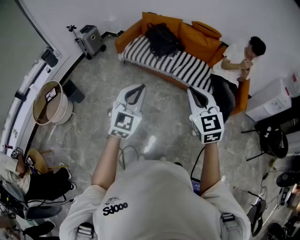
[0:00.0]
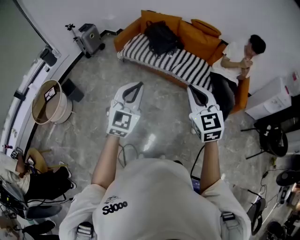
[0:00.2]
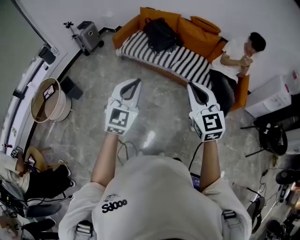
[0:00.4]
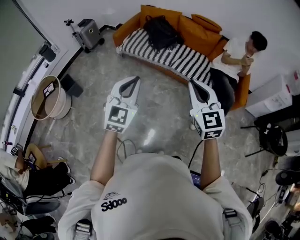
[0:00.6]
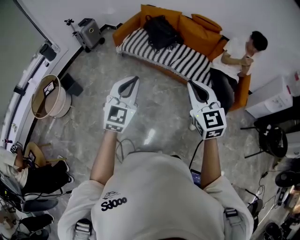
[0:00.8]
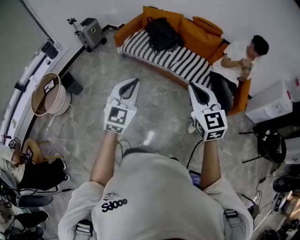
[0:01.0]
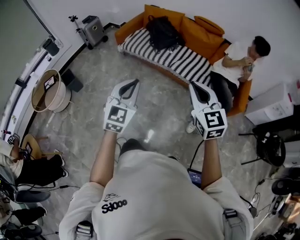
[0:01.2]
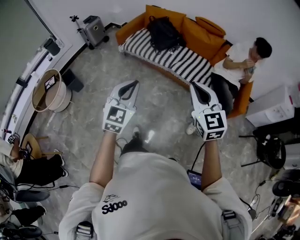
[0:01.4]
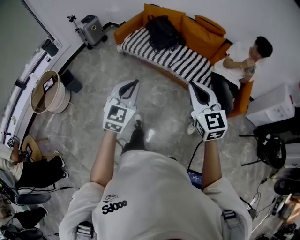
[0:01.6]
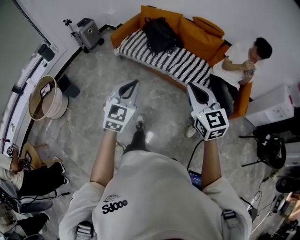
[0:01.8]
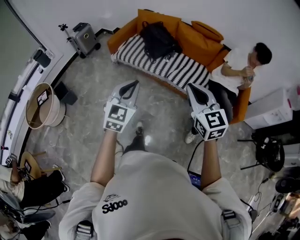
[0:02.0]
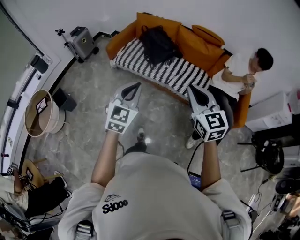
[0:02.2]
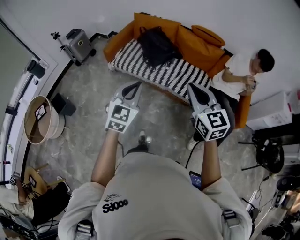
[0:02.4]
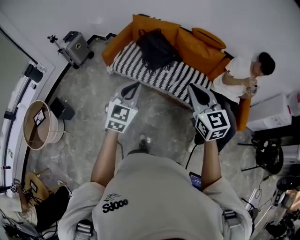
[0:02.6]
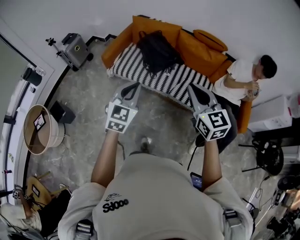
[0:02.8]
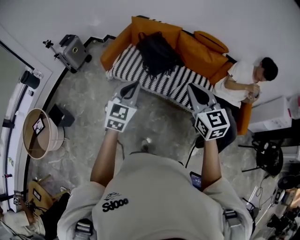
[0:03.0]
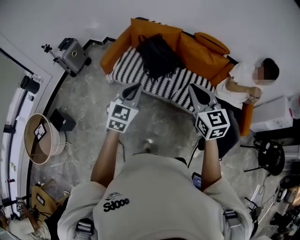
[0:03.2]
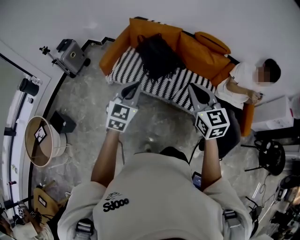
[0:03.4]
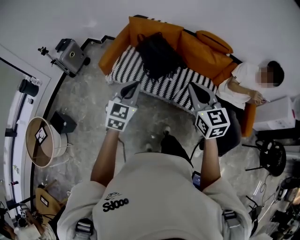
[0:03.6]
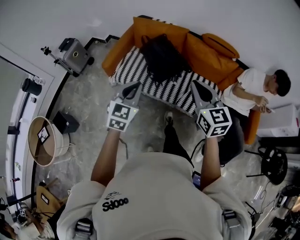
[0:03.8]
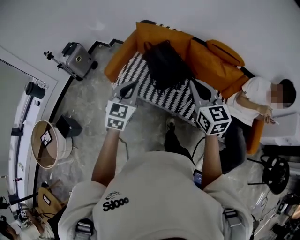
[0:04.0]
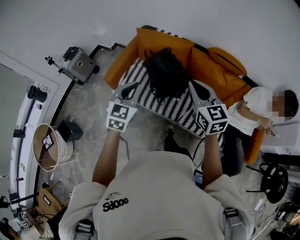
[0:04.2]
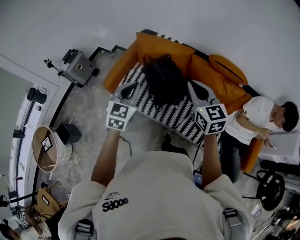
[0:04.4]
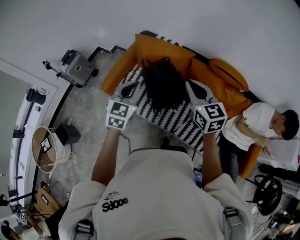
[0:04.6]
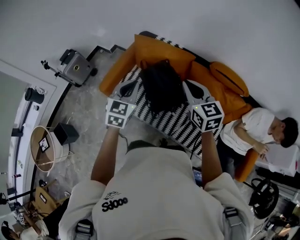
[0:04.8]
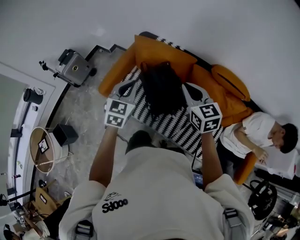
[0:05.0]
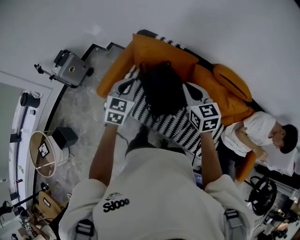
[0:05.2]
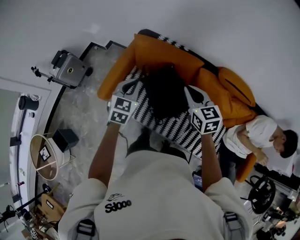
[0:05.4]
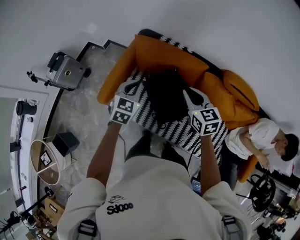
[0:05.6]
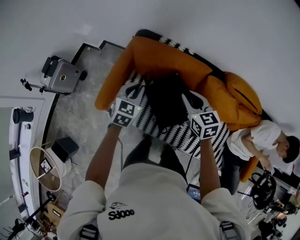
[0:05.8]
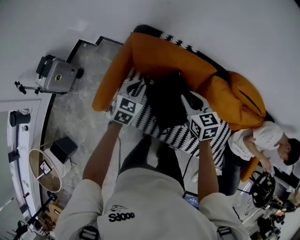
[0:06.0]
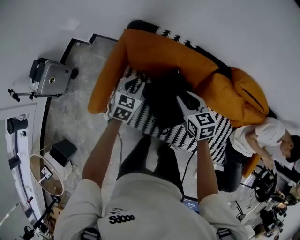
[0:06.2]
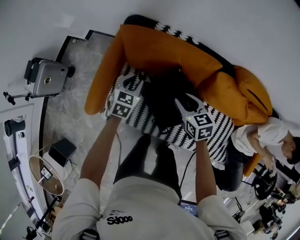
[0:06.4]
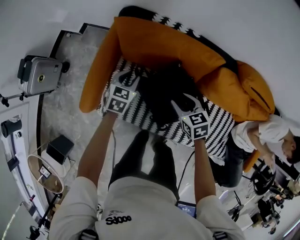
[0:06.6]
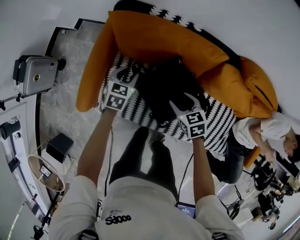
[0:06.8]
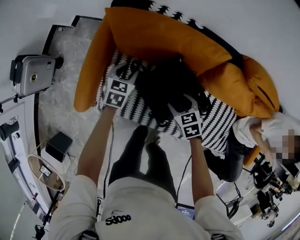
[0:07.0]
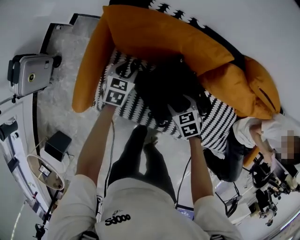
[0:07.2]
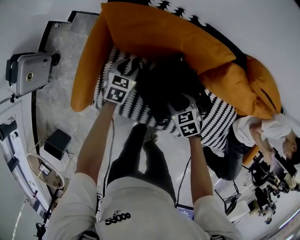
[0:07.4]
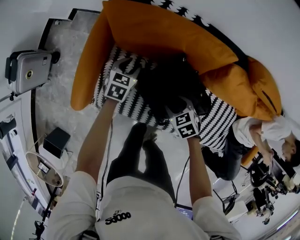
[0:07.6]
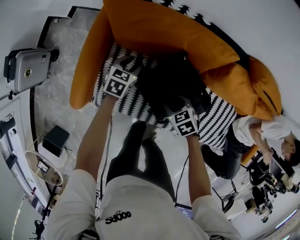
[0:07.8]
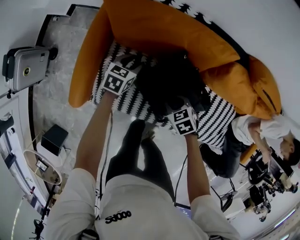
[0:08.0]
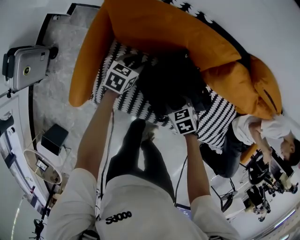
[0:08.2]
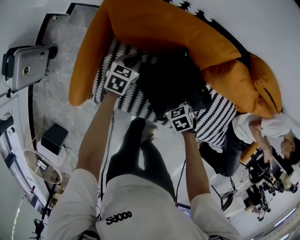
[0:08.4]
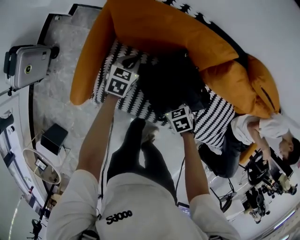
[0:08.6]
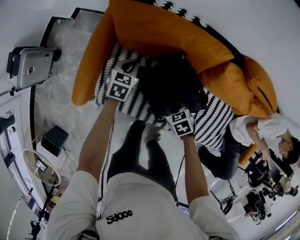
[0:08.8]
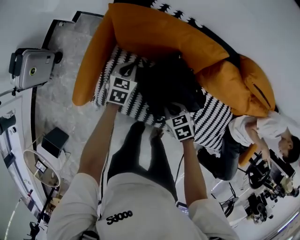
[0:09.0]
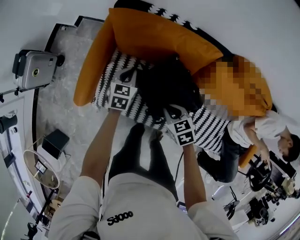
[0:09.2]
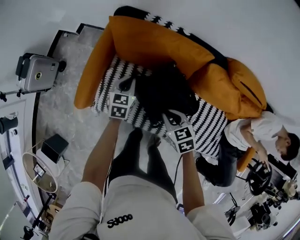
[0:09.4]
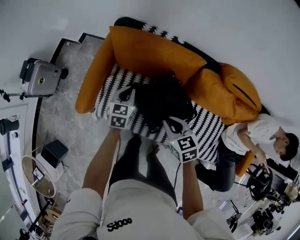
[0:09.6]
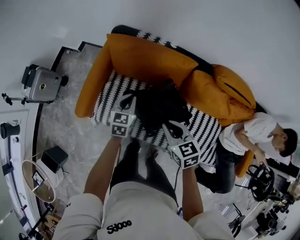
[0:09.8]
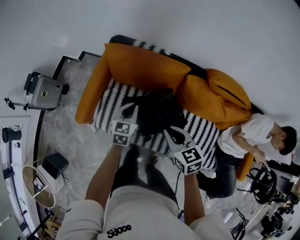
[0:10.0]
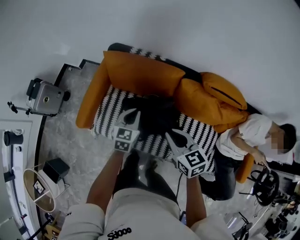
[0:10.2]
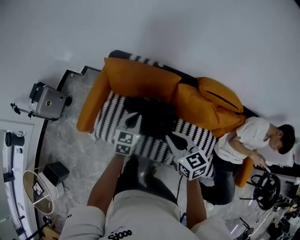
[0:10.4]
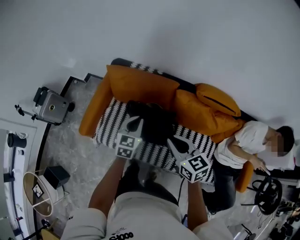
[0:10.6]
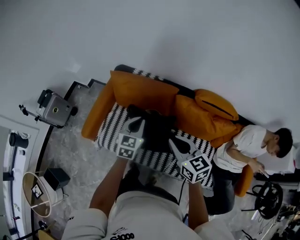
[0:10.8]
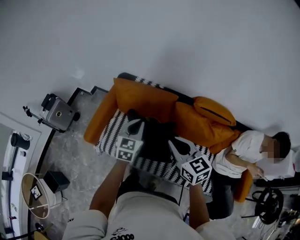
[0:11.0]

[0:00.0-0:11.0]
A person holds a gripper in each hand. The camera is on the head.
0:00.0 to 0:01.6: The right gripper travels to the right and forward by about 10 cm. The left gripper is displaced to the right by some 5 cm.
0:01.6 to 0:03.2: The pair of grippers is taken forward, about 40 cm.
0:03.2 to 0:04.8: Both grippers are carried forward, roughly 40 cm.
0:04.8 to 0:06.2: The left gripper shifts approximately 40 cm forward and downward, swivels some 20 degrees, and opens. The right gripper heads downward and forward, covering roughly 35 cm, rotates about 20 degrees, and opens up.
0:06.2 to 0:07.8: Both grippers travel together downward, about 25 cm. The right gripper turns by roughly 30 degrees.
0:07.8 to 0:09.4: The right gripper goes about 15 cm upward, and closes. The left gripper moves upward and backward, approximately 15 cm, and closes up.
0:09.4 to 0:11.0: The right gripper heads upward, covering roughly 30 cm, and angles its fingers upward, by about 30 degrees; the left gripper moves upward, backward and to the right, about 35 cm, and rotates about 20 degrees.

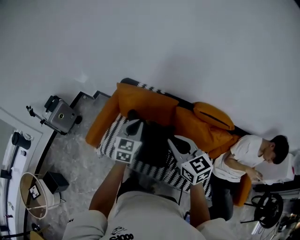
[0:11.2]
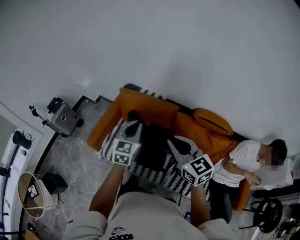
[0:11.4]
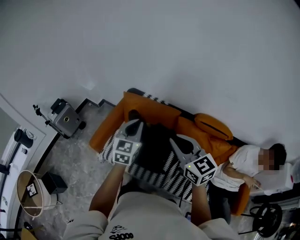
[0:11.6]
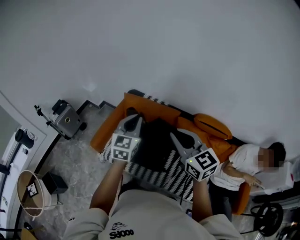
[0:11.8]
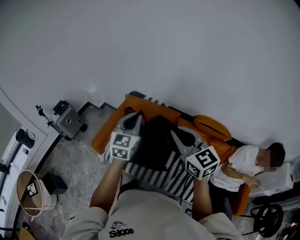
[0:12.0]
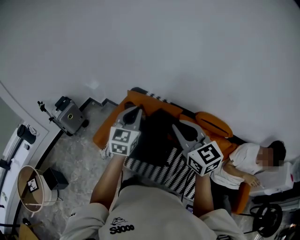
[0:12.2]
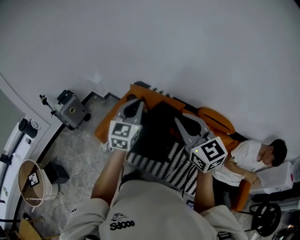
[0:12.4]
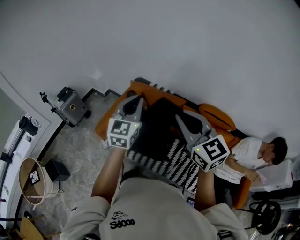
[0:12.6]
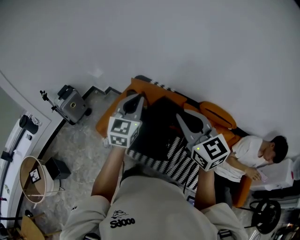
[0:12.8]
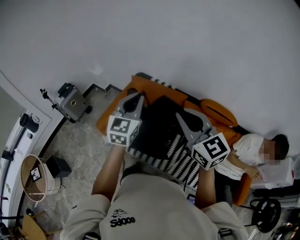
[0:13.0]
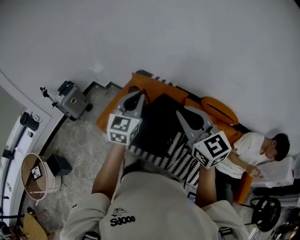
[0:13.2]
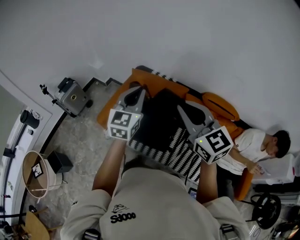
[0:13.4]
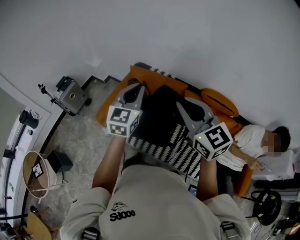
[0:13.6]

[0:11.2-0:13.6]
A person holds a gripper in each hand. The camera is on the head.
0:11.2 to 0:12.4: The grippers both shift upward by roughly 15 cm.
0:12.4 to 0:13.6: There are only small adjustments of the grippers.

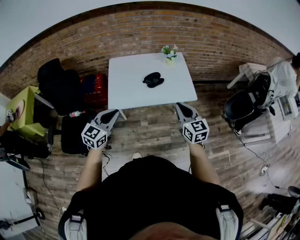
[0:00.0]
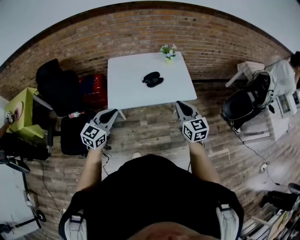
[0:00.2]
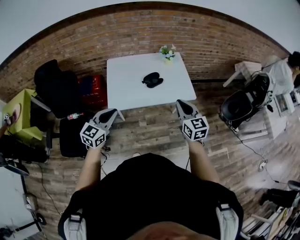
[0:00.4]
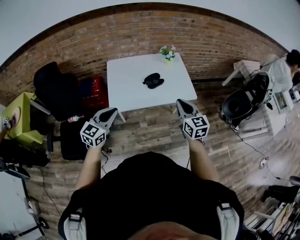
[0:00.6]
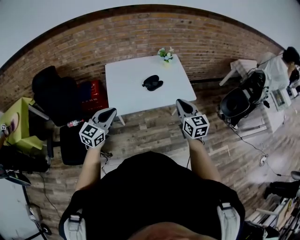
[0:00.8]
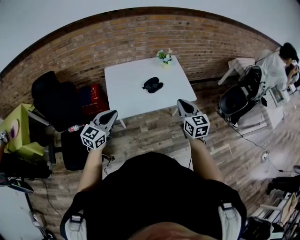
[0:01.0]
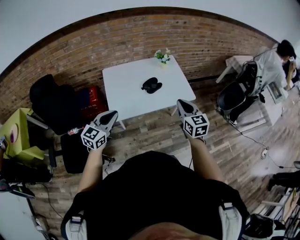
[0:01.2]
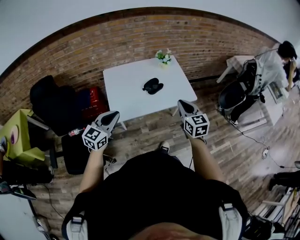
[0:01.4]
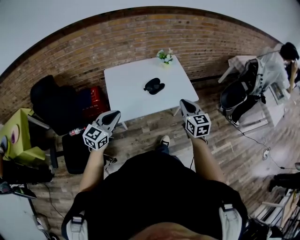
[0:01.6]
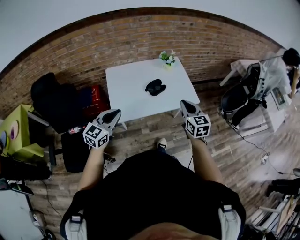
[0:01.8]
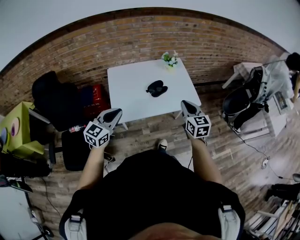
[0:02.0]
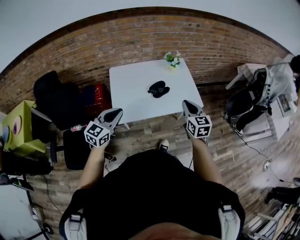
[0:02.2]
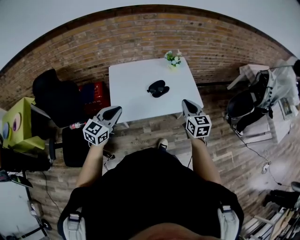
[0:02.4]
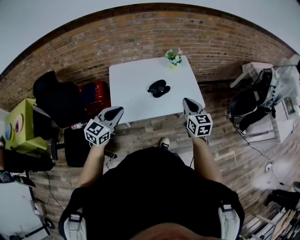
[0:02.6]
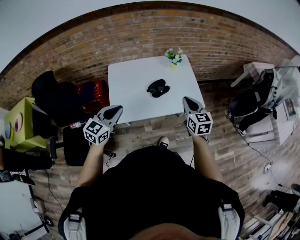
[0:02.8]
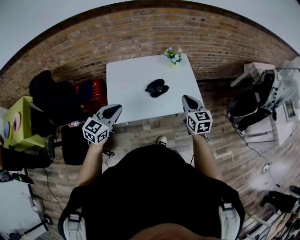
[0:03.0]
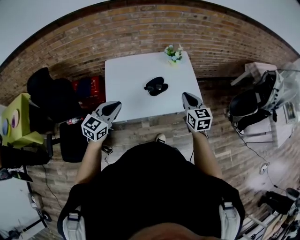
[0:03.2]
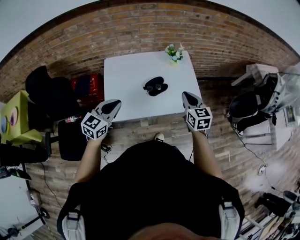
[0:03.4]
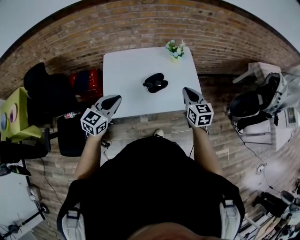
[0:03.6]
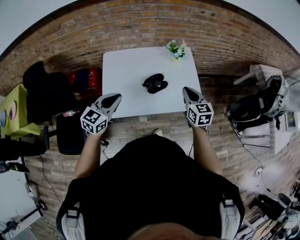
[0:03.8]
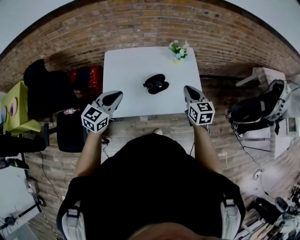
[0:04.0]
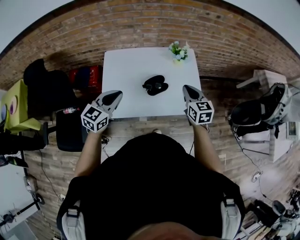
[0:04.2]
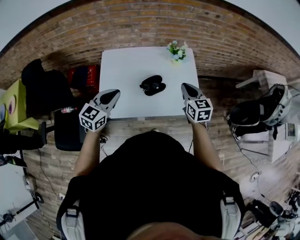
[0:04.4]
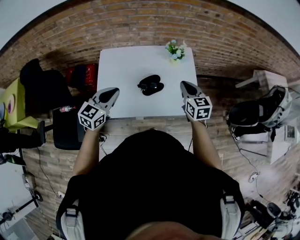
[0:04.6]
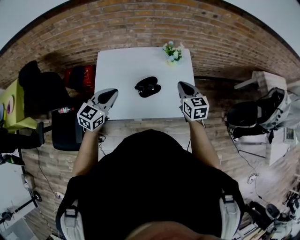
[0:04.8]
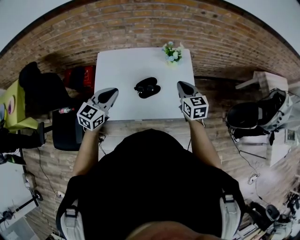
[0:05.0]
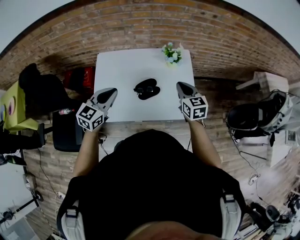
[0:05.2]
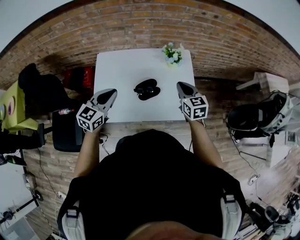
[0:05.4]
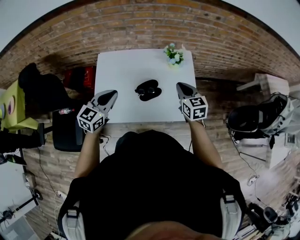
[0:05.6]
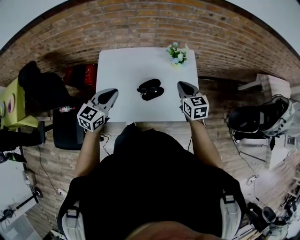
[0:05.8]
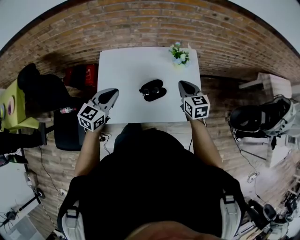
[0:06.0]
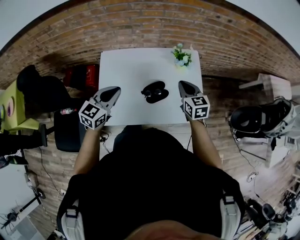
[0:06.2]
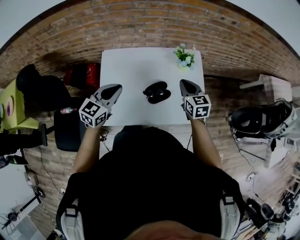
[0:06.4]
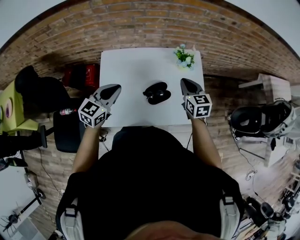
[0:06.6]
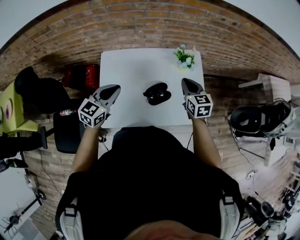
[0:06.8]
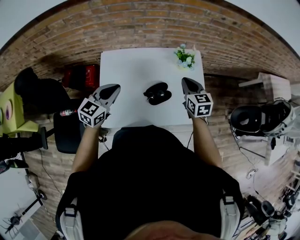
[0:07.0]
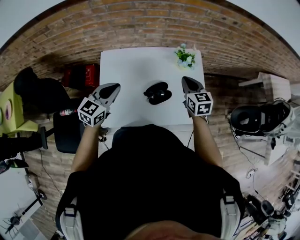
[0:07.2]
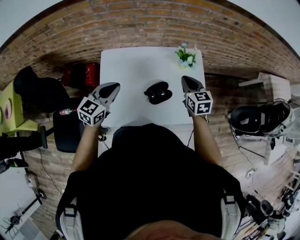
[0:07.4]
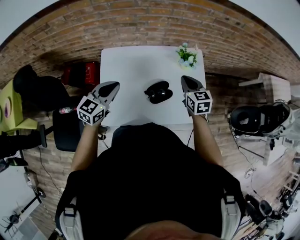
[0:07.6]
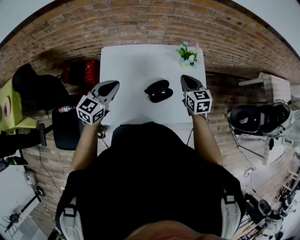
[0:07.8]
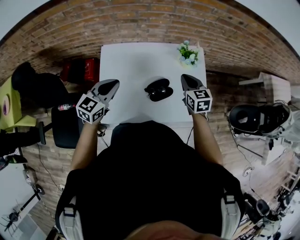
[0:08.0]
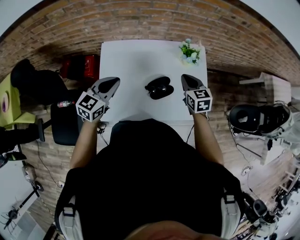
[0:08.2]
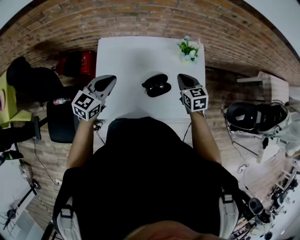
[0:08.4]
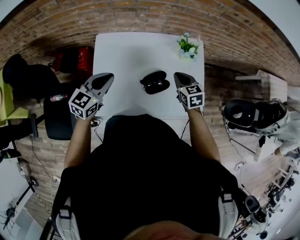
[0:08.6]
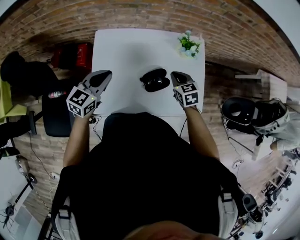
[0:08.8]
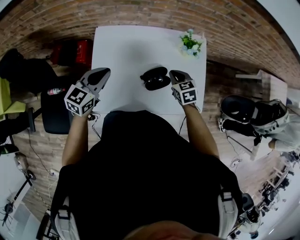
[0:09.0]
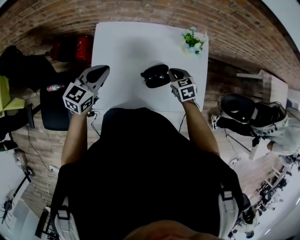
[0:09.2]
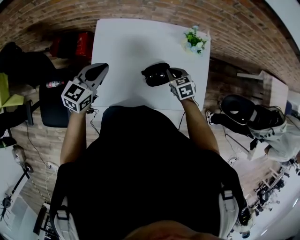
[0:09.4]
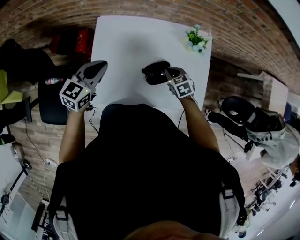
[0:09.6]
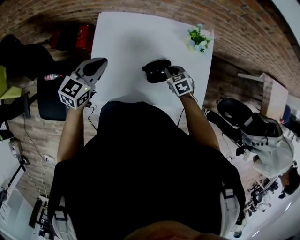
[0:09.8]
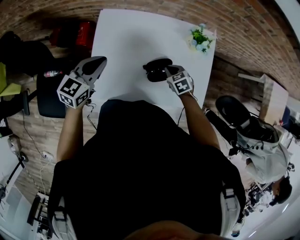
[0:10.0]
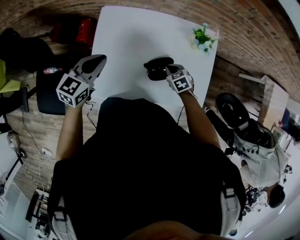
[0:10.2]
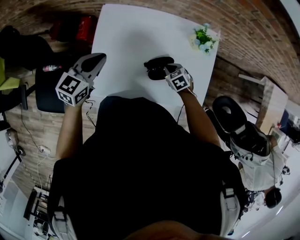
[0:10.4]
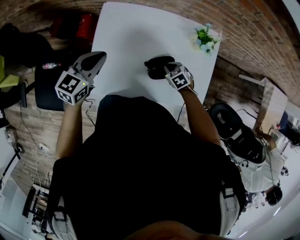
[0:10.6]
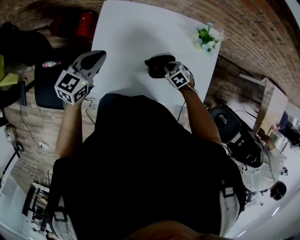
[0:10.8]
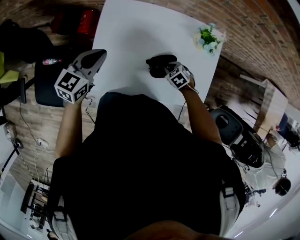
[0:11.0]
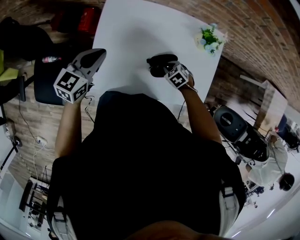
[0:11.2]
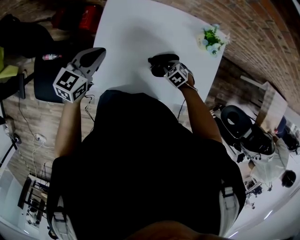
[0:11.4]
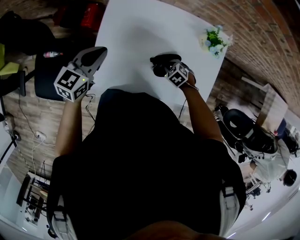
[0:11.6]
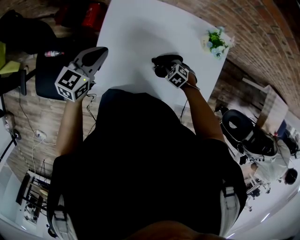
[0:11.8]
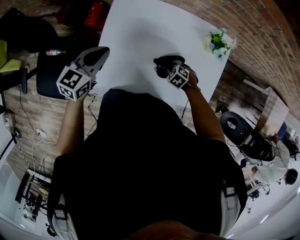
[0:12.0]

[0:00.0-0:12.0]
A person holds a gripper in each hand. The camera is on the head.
0:00.0 to 0:01.6: The right gripper is displaced to the left by approximately 5 cm. The left gripper heads to the left and forward, covering approximately 10 cm.
0:01.6 to 0:03.0: The grippers both shift forward by some 10 cm.
0:03.0 to 0:04.4: The grippers both shift forward by approximately 15 cm.
0:04.4 to 0:06.0: Both grippers move forward, roughly 10 cm.
0:06.0 to 0:07.6: The left gripper travels forward and to the left by roughly 10 cm, while the right gripper travels forward by approximately 5 cm.
0:07.6 to 0:09.0: The right gripper moves downward, about 10 cm, and swivels approximately 20 degrees, while the left gripper changes place by some 5 cm.
0:09.0 to 0:10.4: The right gripper moves downward, some 15 cm, and turns by roughly 30 degrees.
0:10.4 to 0:12.0: The right gripper is displaced downward by about 5 cm, and changes its angle by about 30 degrees.
